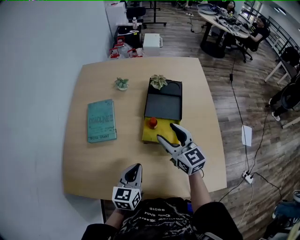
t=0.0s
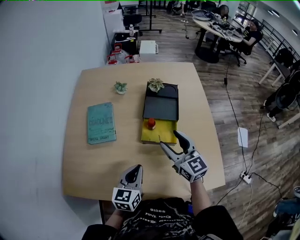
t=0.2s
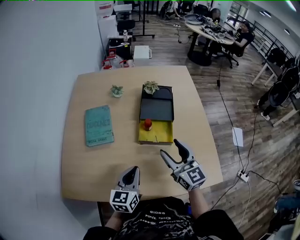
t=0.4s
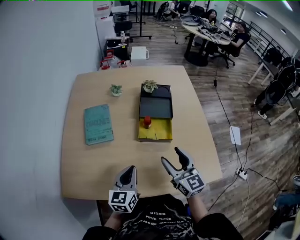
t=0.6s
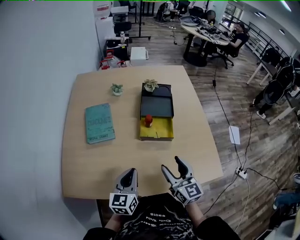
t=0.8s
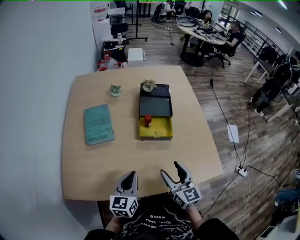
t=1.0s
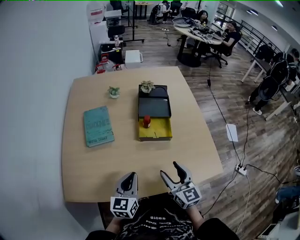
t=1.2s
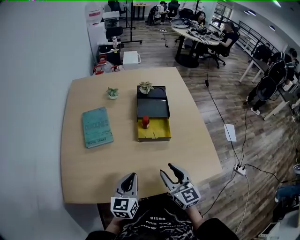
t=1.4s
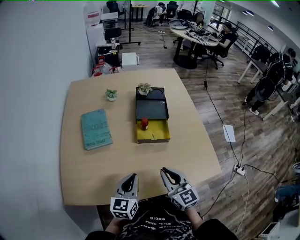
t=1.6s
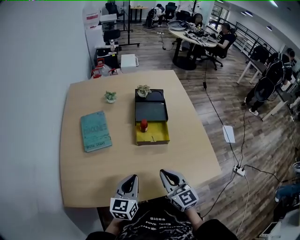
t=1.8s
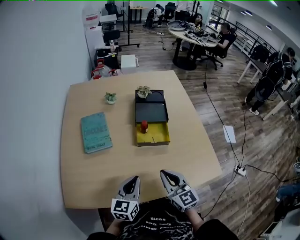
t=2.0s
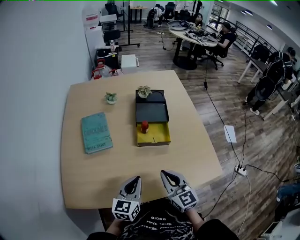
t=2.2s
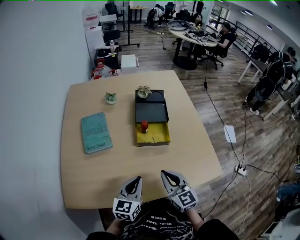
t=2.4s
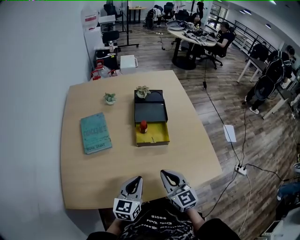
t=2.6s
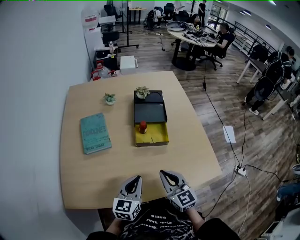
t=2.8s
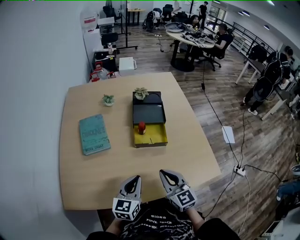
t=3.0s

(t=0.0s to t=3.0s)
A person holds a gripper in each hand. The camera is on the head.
t=0.0s - t=1.6s: The right gripper shifts some 20 cm backward, and closes; the left gripper heads backward, covering some 10 cm.
t=1.6s - t=3.0s: There are only small adjustments of the grippers.

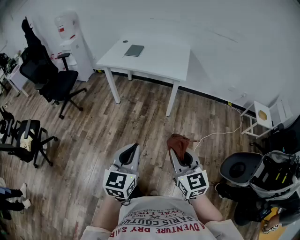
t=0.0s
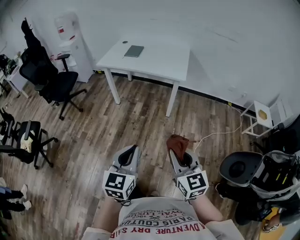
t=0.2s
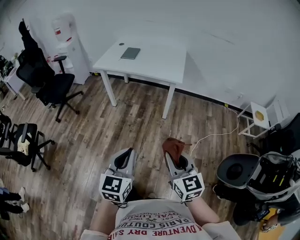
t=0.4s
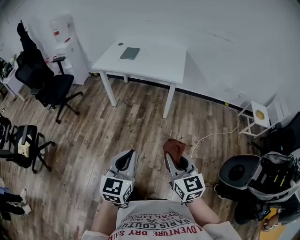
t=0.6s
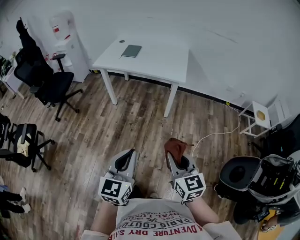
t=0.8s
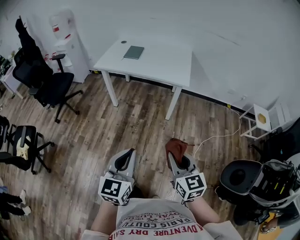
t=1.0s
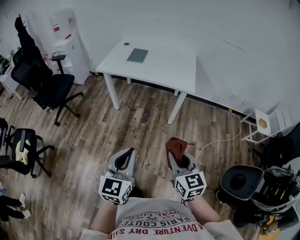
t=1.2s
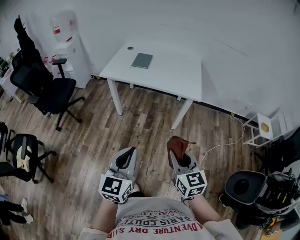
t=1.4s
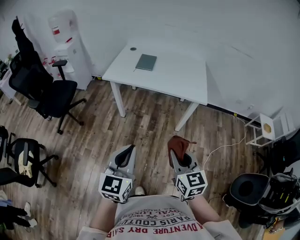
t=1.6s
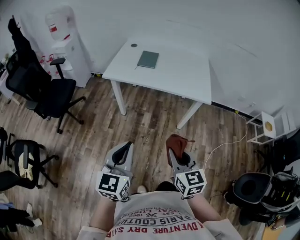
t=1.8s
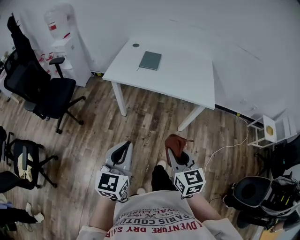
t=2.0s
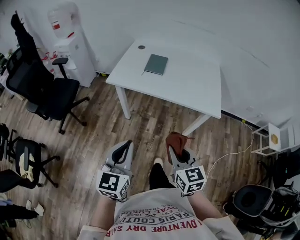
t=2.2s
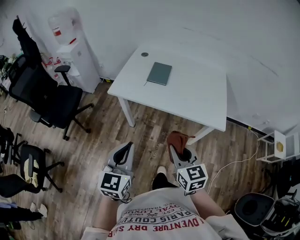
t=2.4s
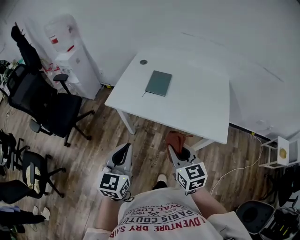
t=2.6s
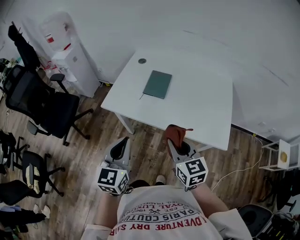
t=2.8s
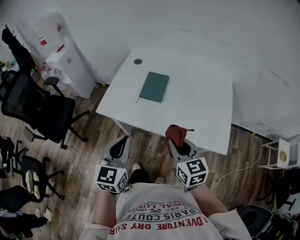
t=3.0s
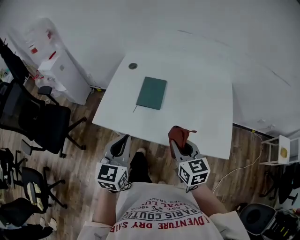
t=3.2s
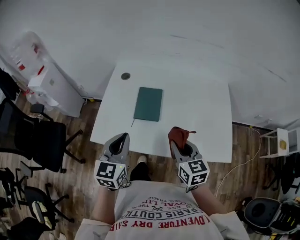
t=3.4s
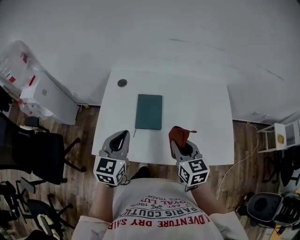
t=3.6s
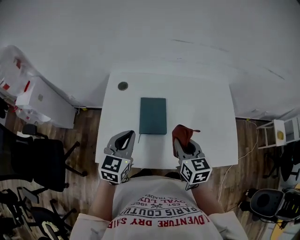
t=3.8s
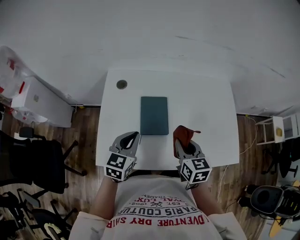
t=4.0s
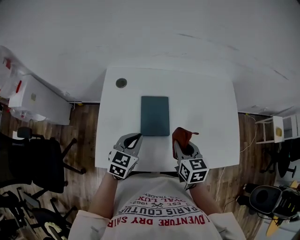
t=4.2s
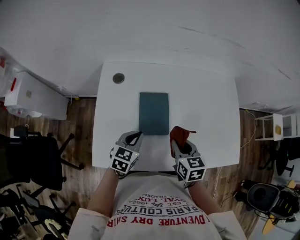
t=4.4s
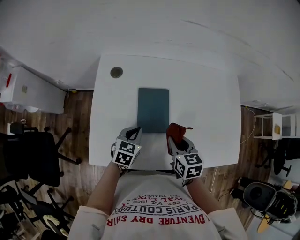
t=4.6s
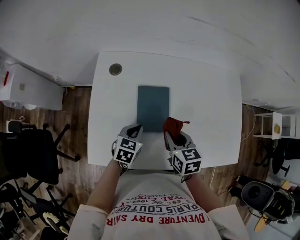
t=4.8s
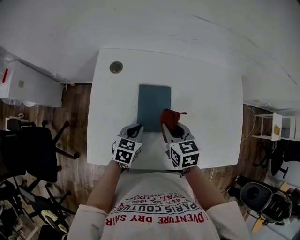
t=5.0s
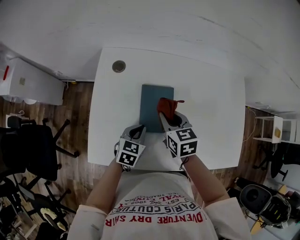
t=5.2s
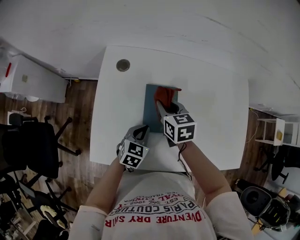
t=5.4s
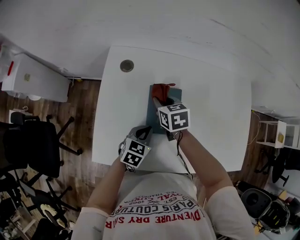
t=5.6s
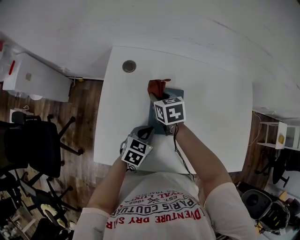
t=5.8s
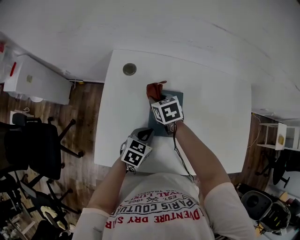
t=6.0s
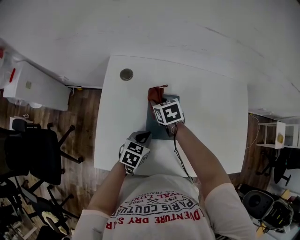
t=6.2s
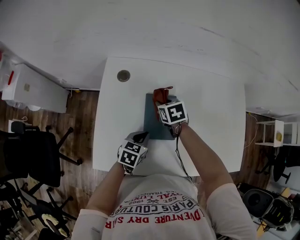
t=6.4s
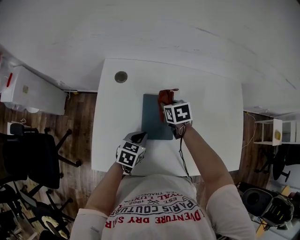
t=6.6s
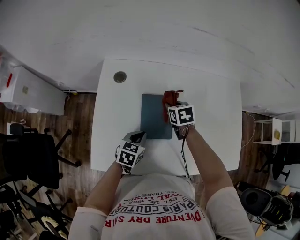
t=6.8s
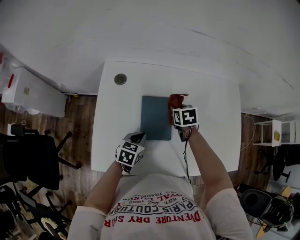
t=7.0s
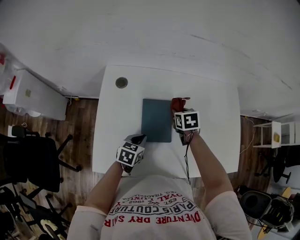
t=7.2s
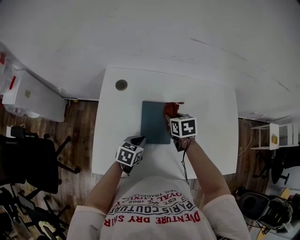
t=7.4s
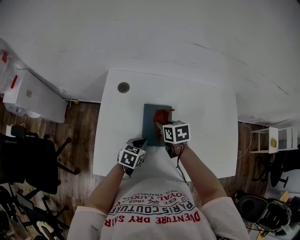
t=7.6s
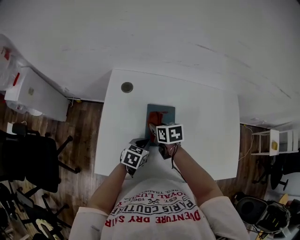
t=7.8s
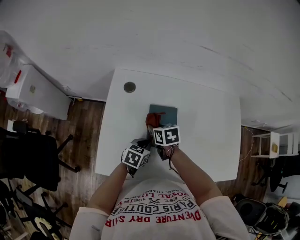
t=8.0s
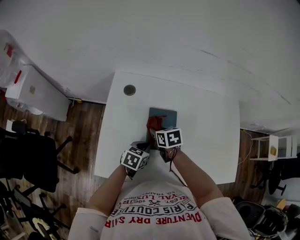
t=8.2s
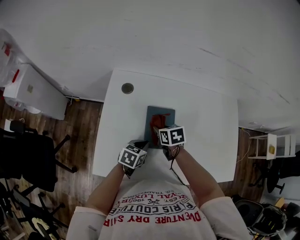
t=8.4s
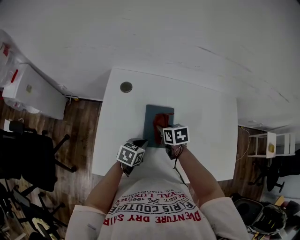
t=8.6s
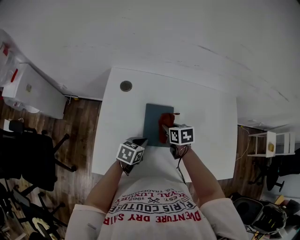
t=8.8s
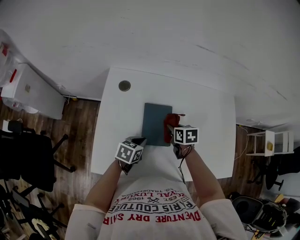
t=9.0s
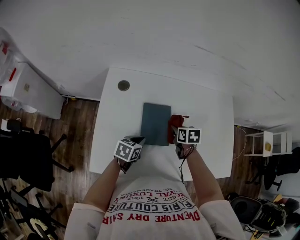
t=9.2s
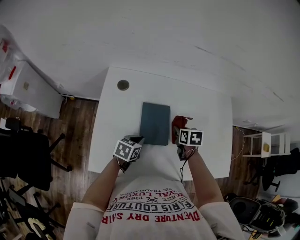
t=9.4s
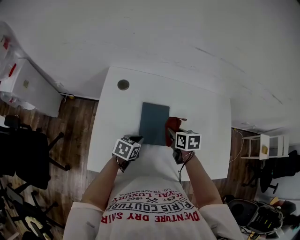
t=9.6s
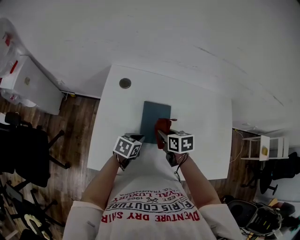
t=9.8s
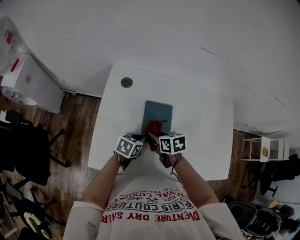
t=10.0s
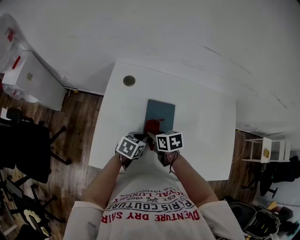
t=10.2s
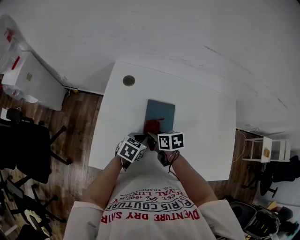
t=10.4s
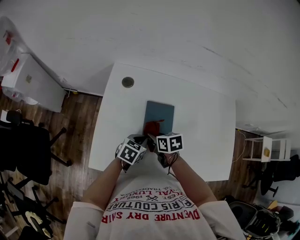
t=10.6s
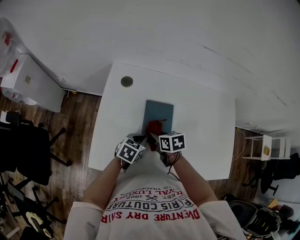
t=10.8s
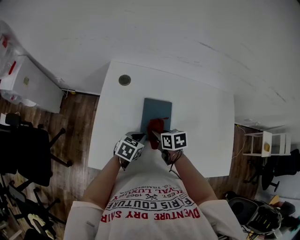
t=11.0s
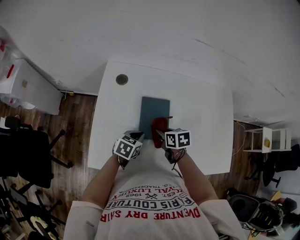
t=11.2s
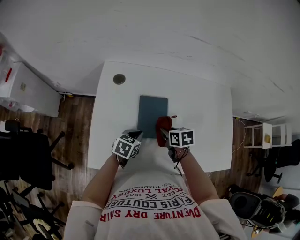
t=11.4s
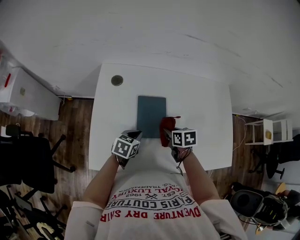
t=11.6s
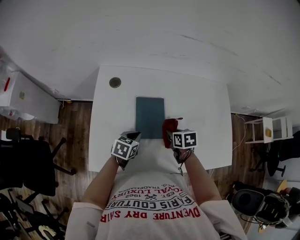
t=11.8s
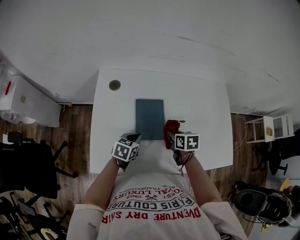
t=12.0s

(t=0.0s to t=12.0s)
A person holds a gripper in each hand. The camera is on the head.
t=0.0s - t=1.6s: Both grippers move forward and to the left, some 30 cm.
t=1.6s - t=3.0s: The two grippers travel together, forward, approximately 40 cm.
t=3.0s - t=4.4s: The right gripper changes place by some 30 cm, and changes its angle by some 30 degrees. Meanwhile the left gripper changes place by roughly 40 cm, and turns by approximately 40 degrees.
t=4.4s - t=6.0s: The right gripper moves forward, to the left and downward, about 25 cm, and turns by some 20 degrees, while the left gripper moves downward, some 5 cm.
t=6.0s - t=7.6s: The right gripper moves to the right and backward, some 10 cm.
t=7.6s - t=9.0s: The right gripper heads to the right, covering some 5 cm.
t=9.0s - t=10.4s: The right gripper travels to the left and backward by about 10 cm.
t=10.4s - t=12.0s: The right gripper moves to the right, some 15 cm.

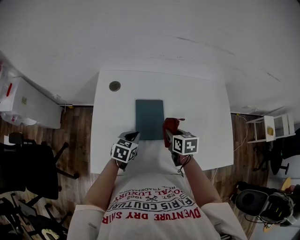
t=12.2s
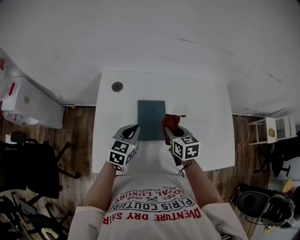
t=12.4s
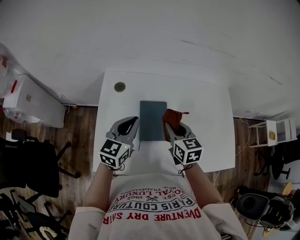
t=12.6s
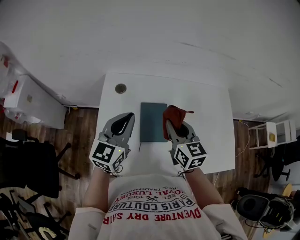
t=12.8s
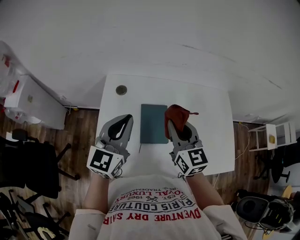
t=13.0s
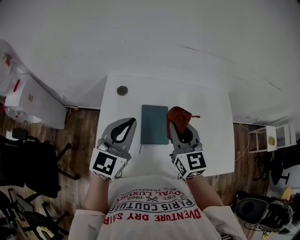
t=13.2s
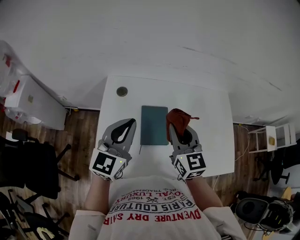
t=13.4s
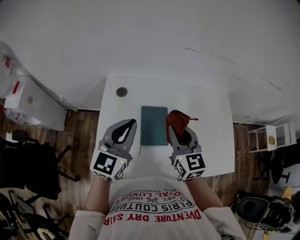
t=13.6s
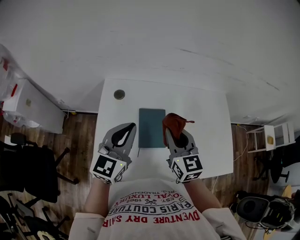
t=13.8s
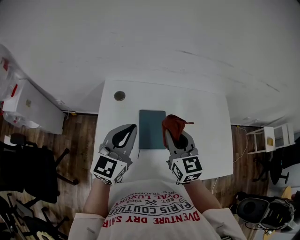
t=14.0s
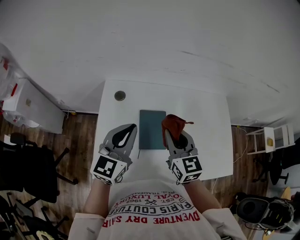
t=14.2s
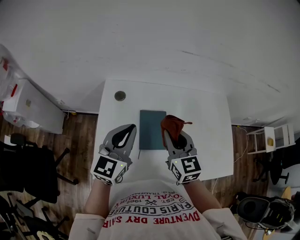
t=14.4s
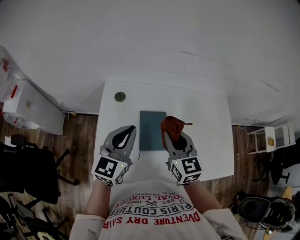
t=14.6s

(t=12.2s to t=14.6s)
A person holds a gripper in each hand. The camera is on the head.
t=12.2s - t=13.4s: Both grippers move upward, about 25 cm. The left gripper tips its fingers upward by about 40 degrees; the right gripper points its fingers about 40 degrees further upward.
t=13.4s - t=14.6s: The grippers make only small movements.

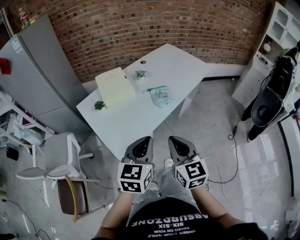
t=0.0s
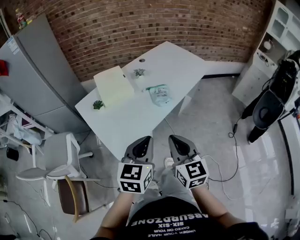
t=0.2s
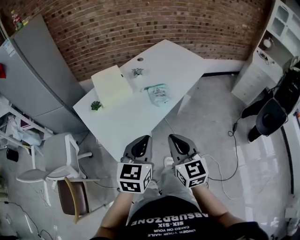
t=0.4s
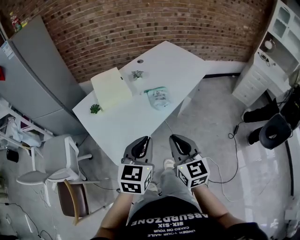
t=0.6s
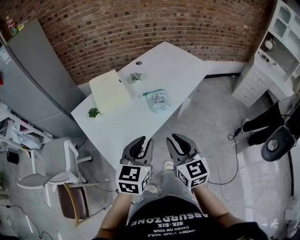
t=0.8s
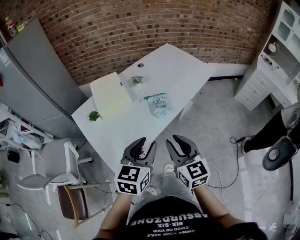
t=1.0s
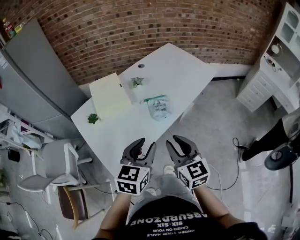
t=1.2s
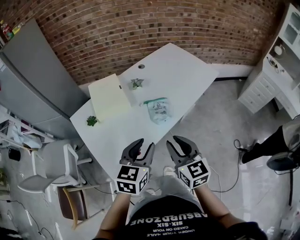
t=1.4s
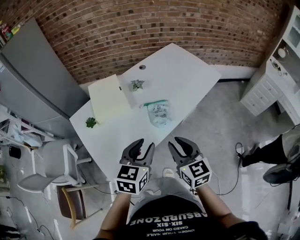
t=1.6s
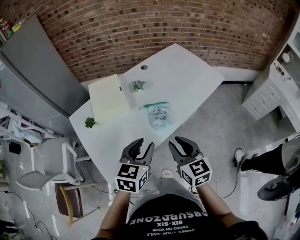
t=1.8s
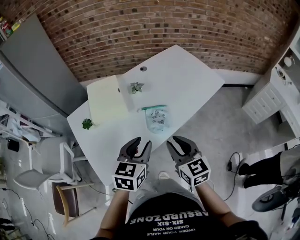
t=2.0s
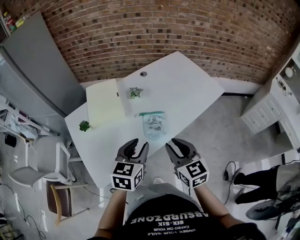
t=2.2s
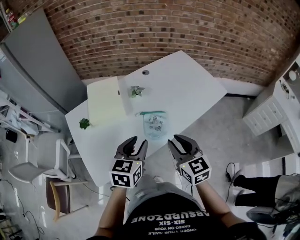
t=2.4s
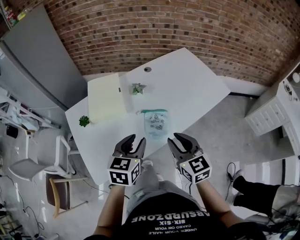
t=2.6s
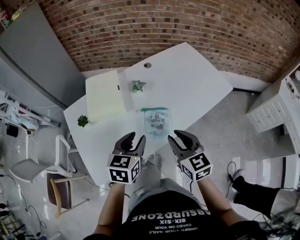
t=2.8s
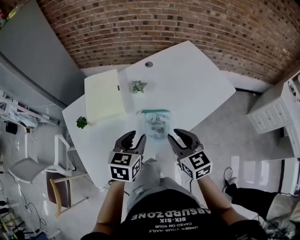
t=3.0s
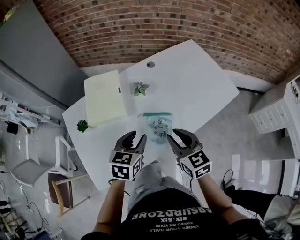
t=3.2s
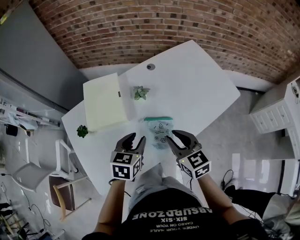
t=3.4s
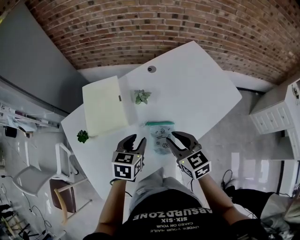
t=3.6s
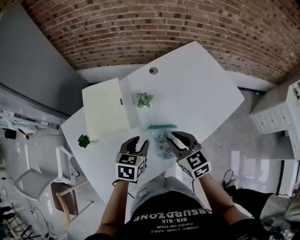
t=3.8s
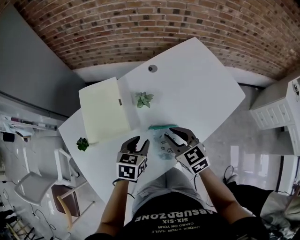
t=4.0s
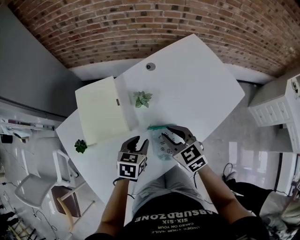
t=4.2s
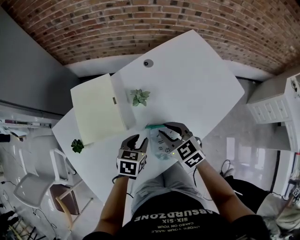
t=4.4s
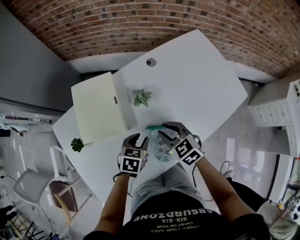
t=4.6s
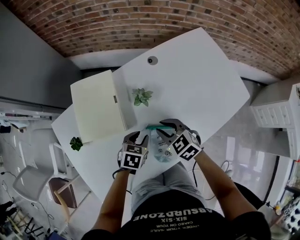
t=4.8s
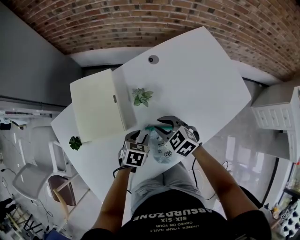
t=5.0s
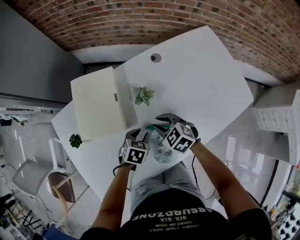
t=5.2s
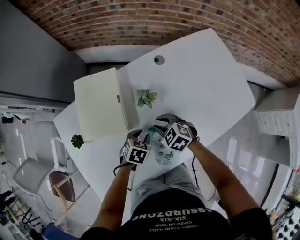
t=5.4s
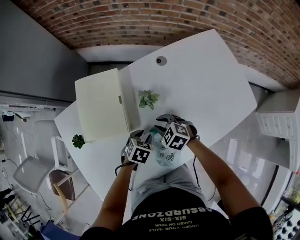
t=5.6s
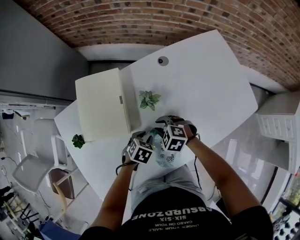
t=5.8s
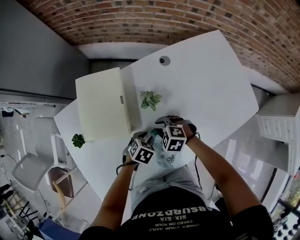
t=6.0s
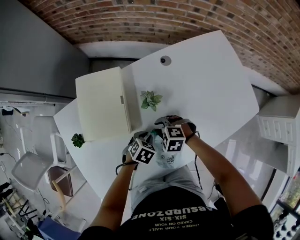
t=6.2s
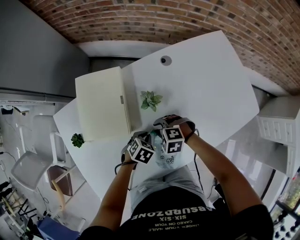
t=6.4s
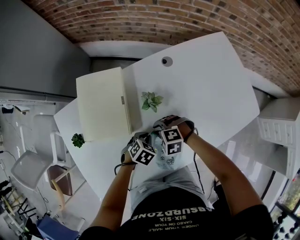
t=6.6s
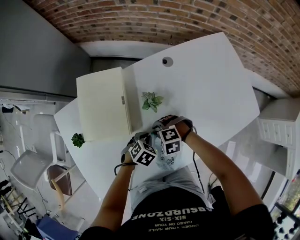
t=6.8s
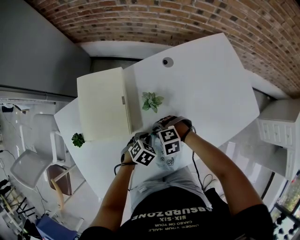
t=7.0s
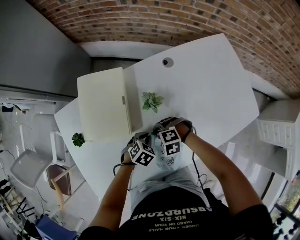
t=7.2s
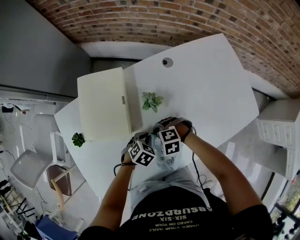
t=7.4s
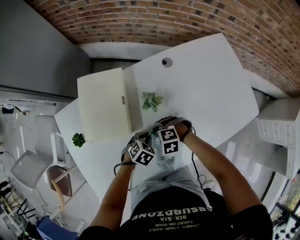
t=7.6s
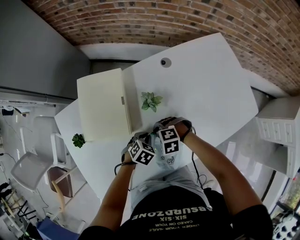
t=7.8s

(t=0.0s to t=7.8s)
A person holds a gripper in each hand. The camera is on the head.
t=0.0s - t=1.6s: Both grippers travel together forward, about 20 cm. The right gripper opens its fingers. Meanwhile the left gripper opens up.
t=1.6s - t=3.2s: The right gripper shifts about 20 cm forward. The left gripper moves forward and downward, some 20 cm.
t=3.2s - t=4.6s: The left gripper heads downward and forward, covering approximately 20 cm, while the right gripper goes some 20 cm forward and downward, and turns by approximately 20 degrees.
t=4.6s - t=6.2s: The two grippers go some 10 cm downward. The right gripper turns by about 50 degrees.
t=6.2s - t=7.8s: The right gripper closes its fingers.
